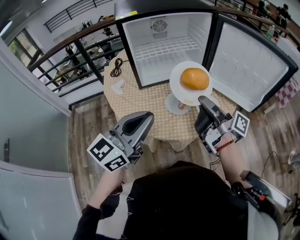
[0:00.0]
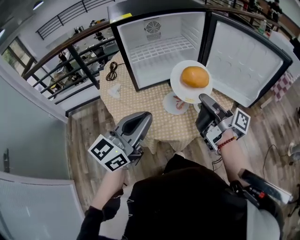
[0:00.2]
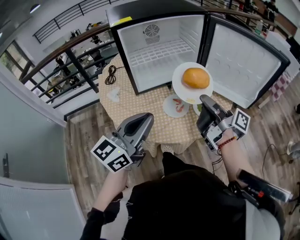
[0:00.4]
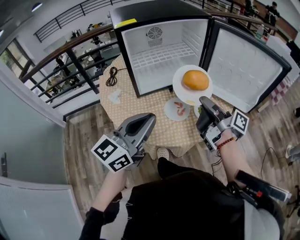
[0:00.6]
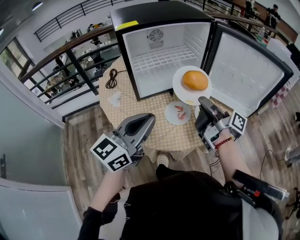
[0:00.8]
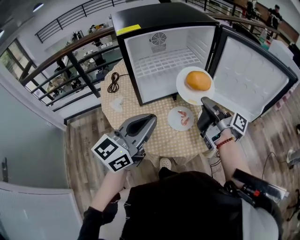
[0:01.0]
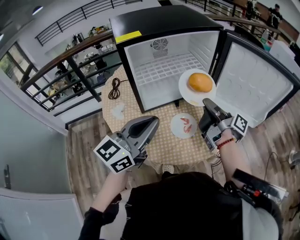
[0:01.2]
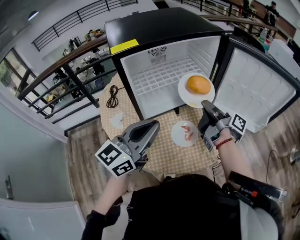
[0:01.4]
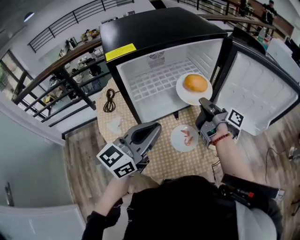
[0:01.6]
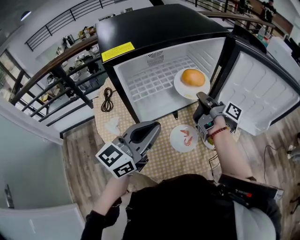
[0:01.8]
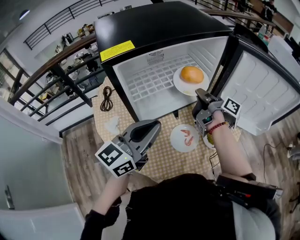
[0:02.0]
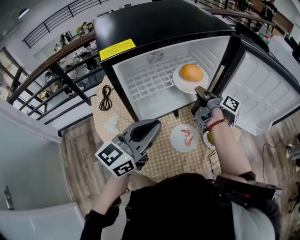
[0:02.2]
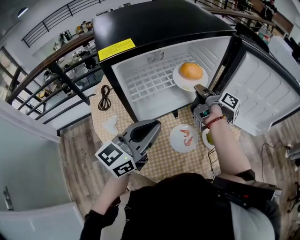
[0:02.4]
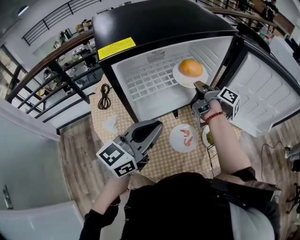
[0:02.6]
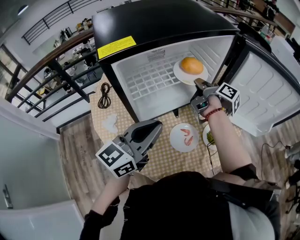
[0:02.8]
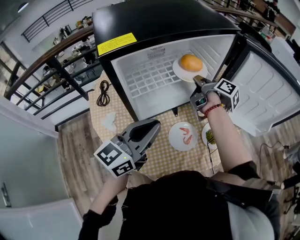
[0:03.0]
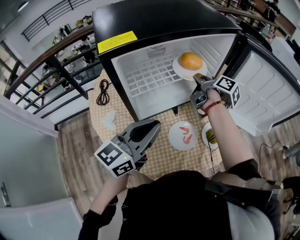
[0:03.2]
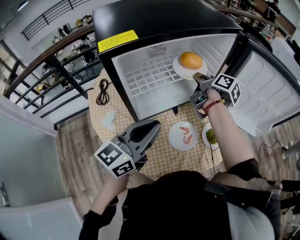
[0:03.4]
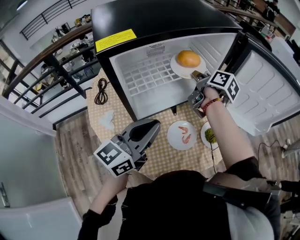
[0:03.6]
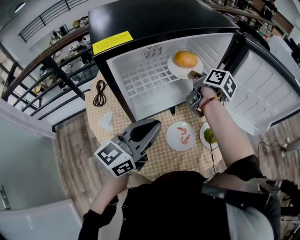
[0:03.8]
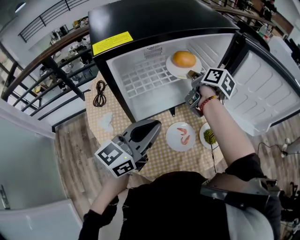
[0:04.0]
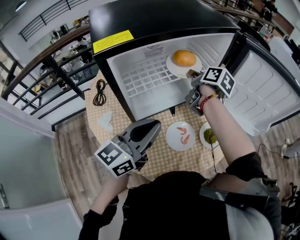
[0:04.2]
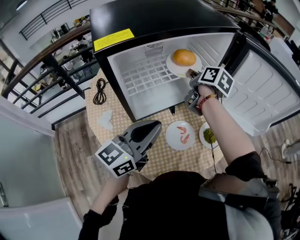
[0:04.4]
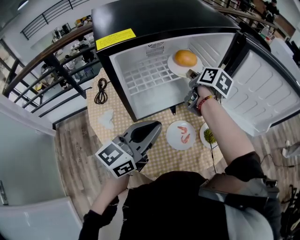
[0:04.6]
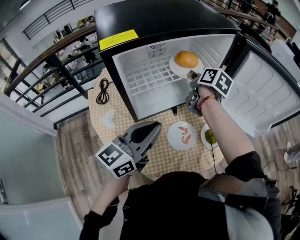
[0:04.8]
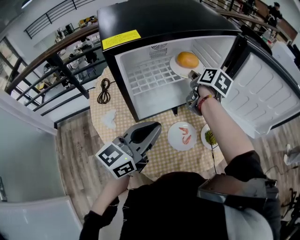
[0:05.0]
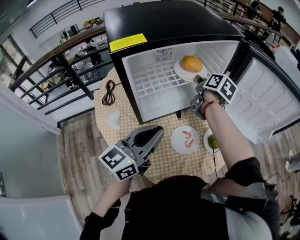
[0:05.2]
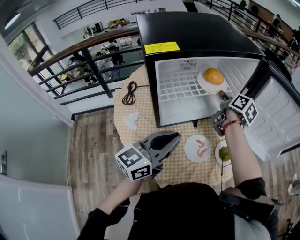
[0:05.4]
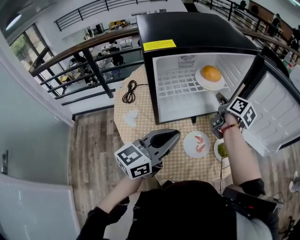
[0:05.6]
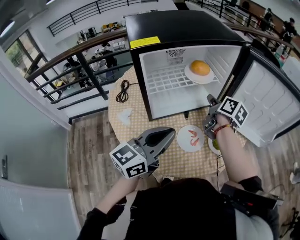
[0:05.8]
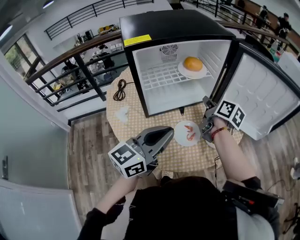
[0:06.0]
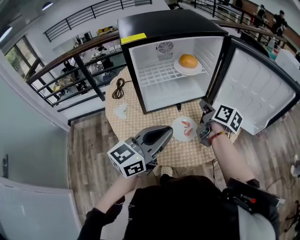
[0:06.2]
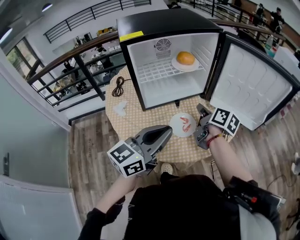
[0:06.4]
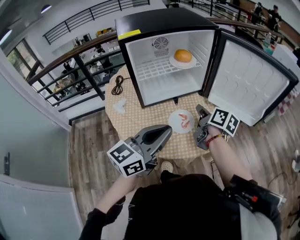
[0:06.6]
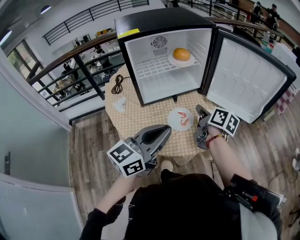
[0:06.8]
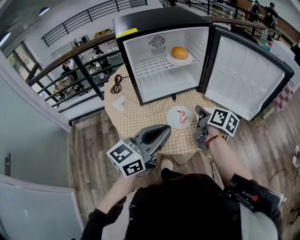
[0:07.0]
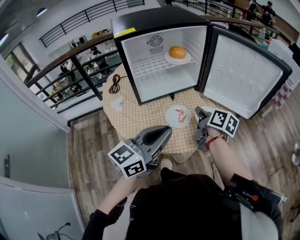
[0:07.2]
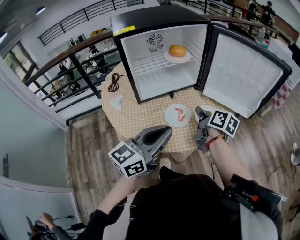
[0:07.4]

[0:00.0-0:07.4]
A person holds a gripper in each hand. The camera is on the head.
0:00.0 to 0:01.4: The left gripper shifts by about 15 cm.
0:01.4 to 0:03.0: The left gripper moves roughly 5 cm.
0:04.4 to 0:06.0: The left gripper shifts by roughly 10 cm.
0:06.0 to 0:07.4: The left gripper moves some 10 cm.

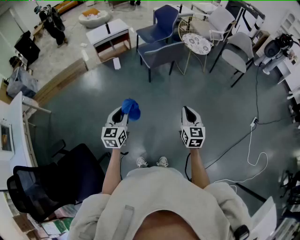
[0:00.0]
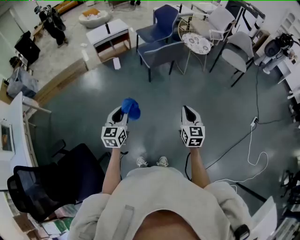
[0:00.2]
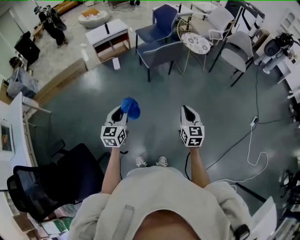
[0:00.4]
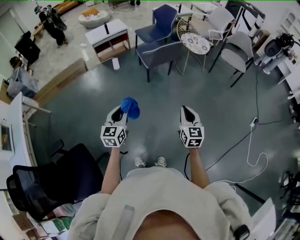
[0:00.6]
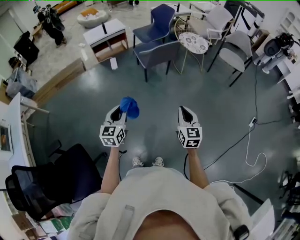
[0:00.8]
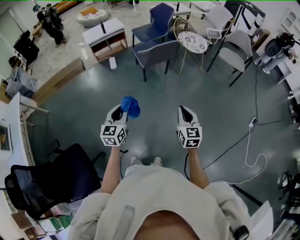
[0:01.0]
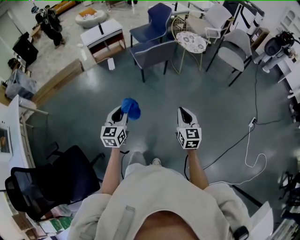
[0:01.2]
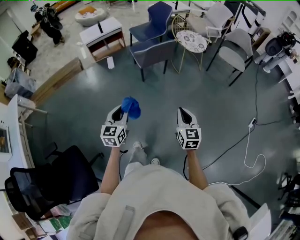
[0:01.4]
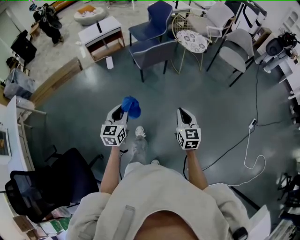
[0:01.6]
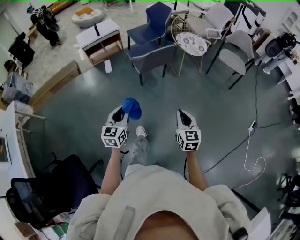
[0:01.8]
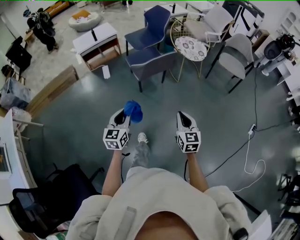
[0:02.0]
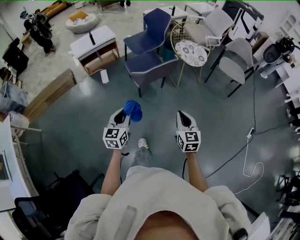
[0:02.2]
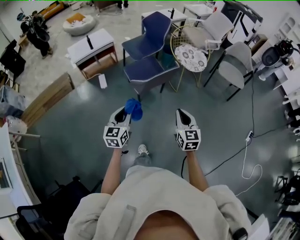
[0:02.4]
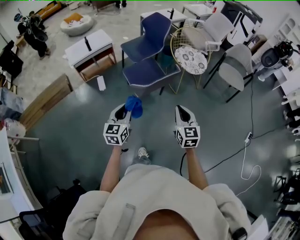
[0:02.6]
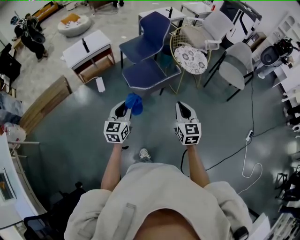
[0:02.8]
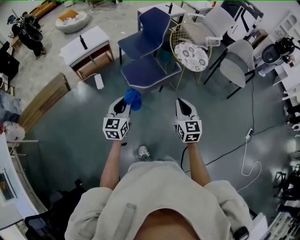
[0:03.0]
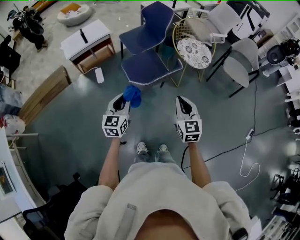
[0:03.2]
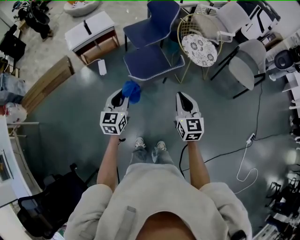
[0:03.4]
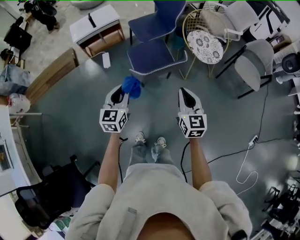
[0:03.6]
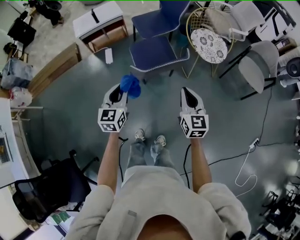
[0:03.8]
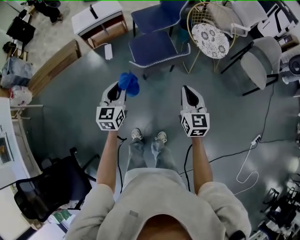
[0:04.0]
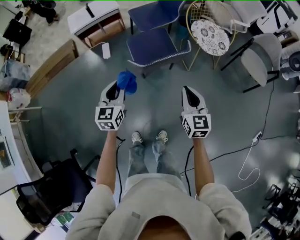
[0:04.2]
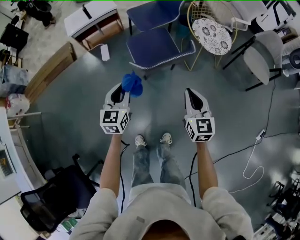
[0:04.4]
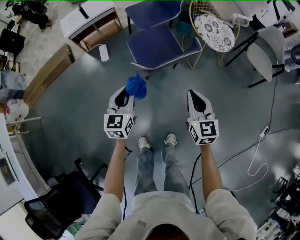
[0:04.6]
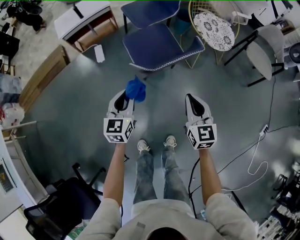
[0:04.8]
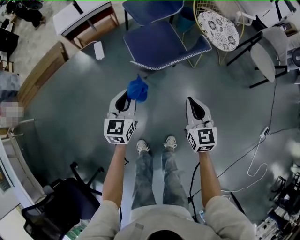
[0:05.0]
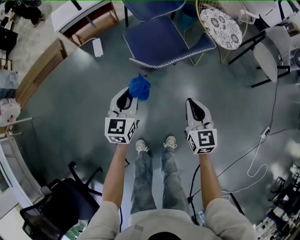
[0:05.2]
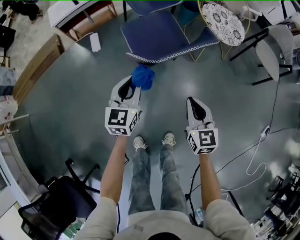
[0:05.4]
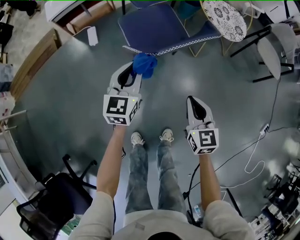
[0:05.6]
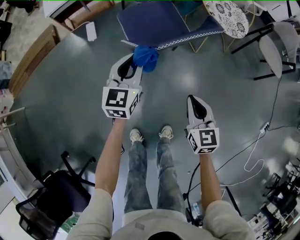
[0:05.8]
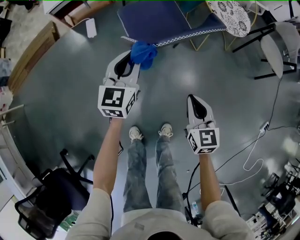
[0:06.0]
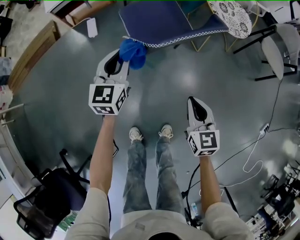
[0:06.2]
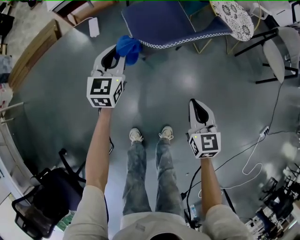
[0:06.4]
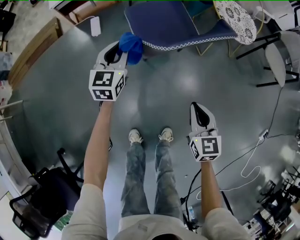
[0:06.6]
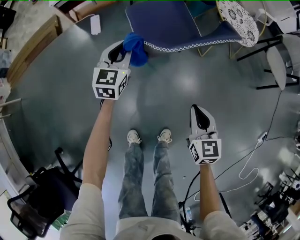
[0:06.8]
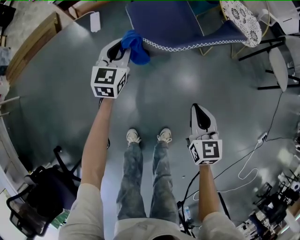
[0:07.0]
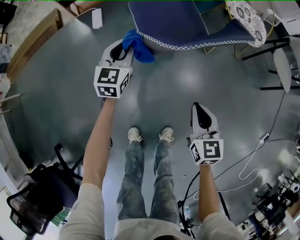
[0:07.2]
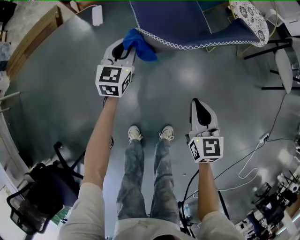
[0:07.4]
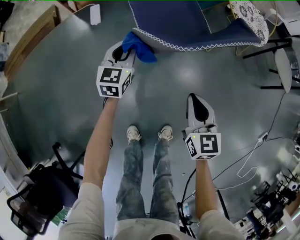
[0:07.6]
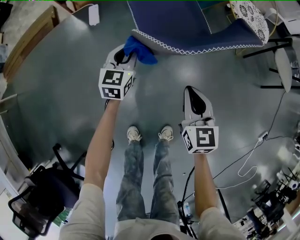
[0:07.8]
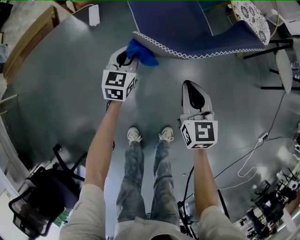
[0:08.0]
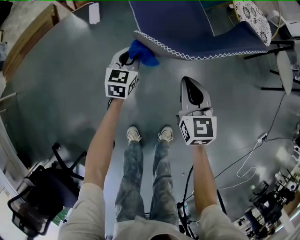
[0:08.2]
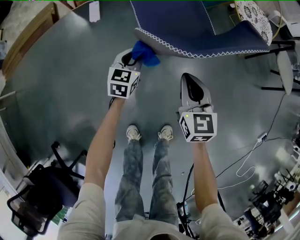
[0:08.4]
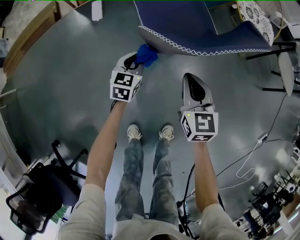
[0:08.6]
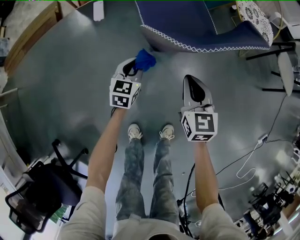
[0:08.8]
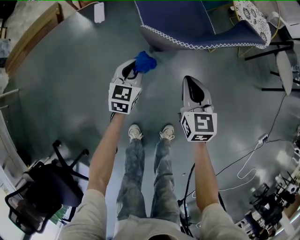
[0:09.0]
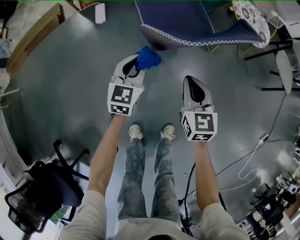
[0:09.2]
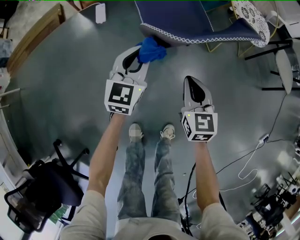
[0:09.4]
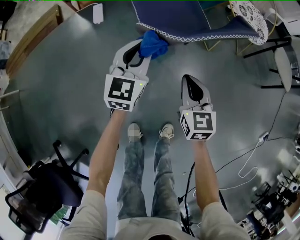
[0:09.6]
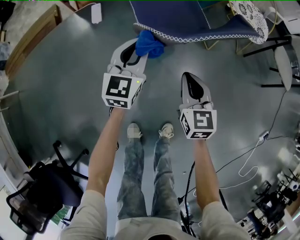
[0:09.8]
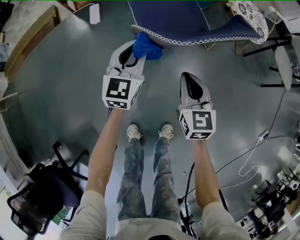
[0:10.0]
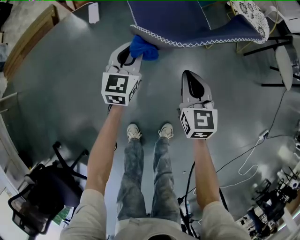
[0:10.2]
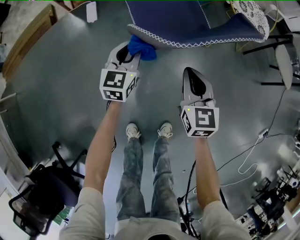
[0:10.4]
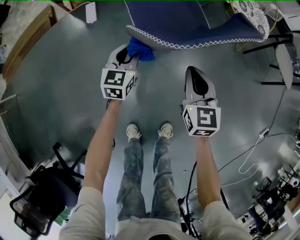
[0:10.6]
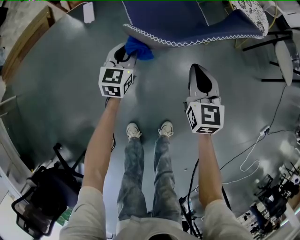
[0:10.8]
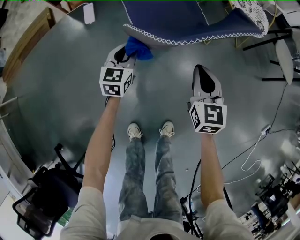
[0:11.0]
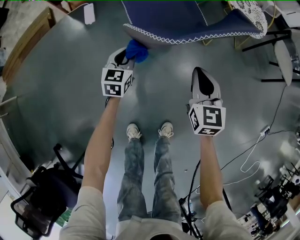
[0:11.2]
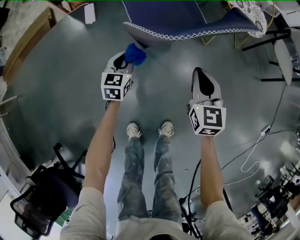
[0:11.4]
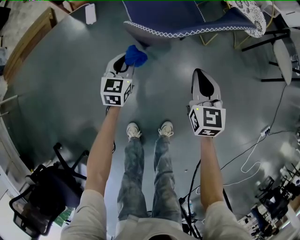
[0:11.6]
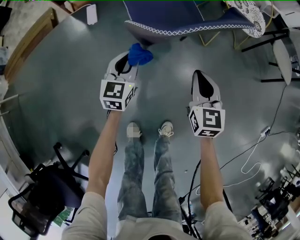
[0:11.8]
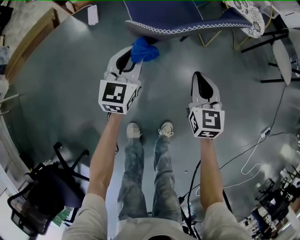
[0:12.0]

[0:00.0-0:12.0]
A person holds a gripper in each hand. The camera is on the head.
0:00.0 to 0:01.6: The right gripper travels forward and to the right by about 10 cm, while the left gripper moves to the right and forward, roughly 15 cm.
0:01.6 to 0:03.0: Both grippers travel together forward, roughly 40 cm.
0:03.0 to 0:04.4: Both grippers travel together downward, roughly 10 cm.
0:04.4 to 0:06.0: The right gripper goes approximately 20 cm downward. The left gripper travels downward and forward by about 15 cm.
0:06.0 to 0:07.6: The left gripper heads downward, forward and to the left, covering approximately 20 cm. Meanwhile the right gripper moves about 10 cm.
0:07.6 to 0:09.0: The left gripper heads backward, covering approximately 10 cm. Meanwhile the right gripper changes place by some 5 cm.
0:09.0 to 0:10.4: The left gripper shifts approximately 5 cm forward, and goes upward and returns, some 15 cm each way.
0:10.4 to 0:12.0: The right gripper changes place by about 5 cm; the left gripper heads upward and backward, covering approximately 10 cm.

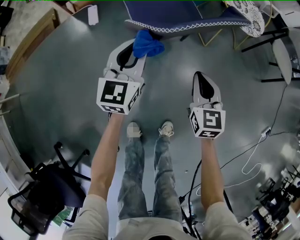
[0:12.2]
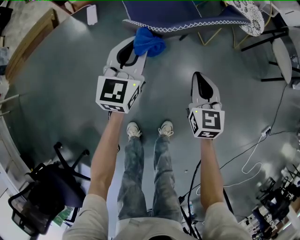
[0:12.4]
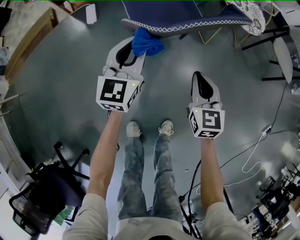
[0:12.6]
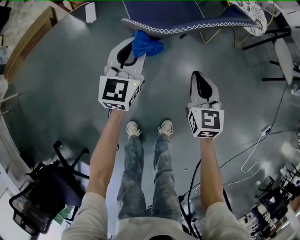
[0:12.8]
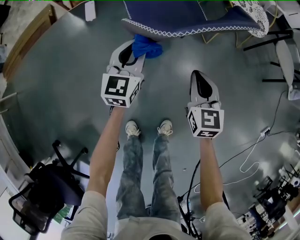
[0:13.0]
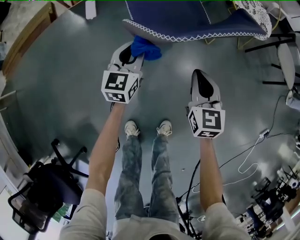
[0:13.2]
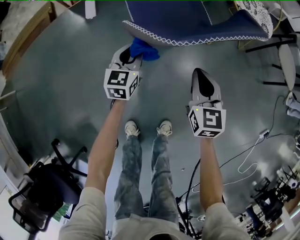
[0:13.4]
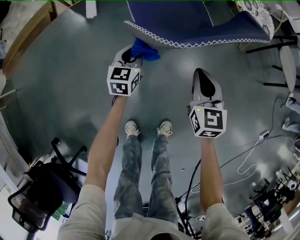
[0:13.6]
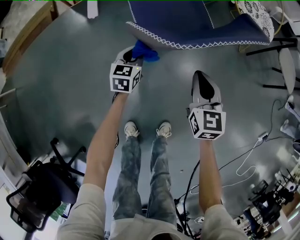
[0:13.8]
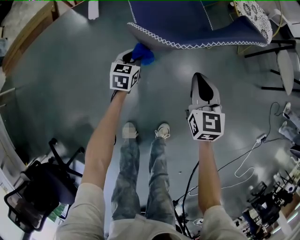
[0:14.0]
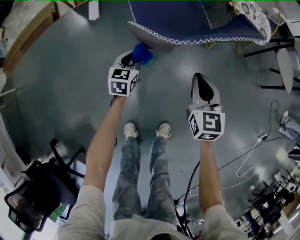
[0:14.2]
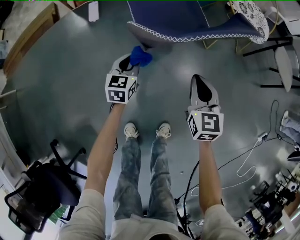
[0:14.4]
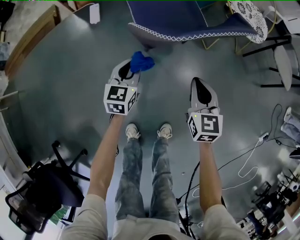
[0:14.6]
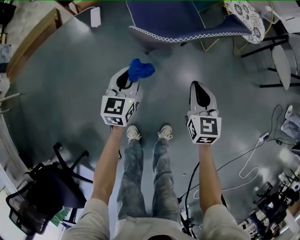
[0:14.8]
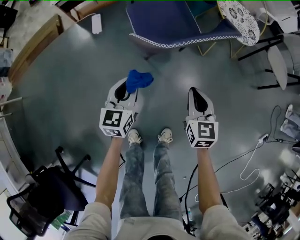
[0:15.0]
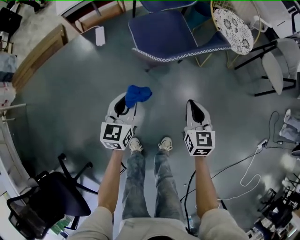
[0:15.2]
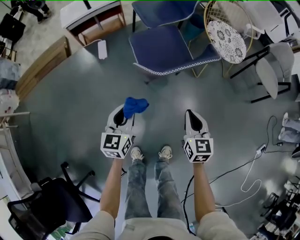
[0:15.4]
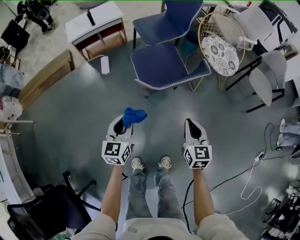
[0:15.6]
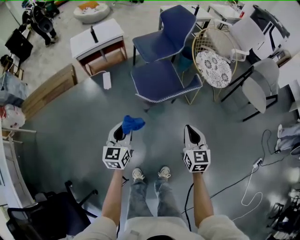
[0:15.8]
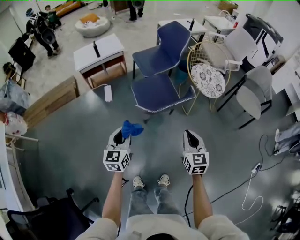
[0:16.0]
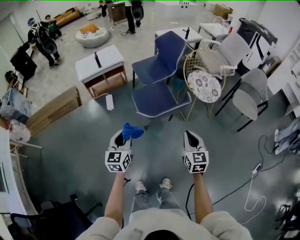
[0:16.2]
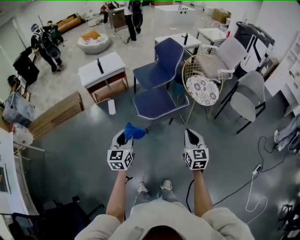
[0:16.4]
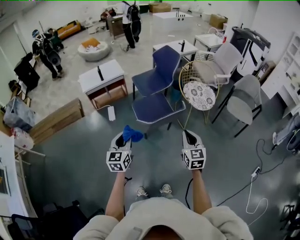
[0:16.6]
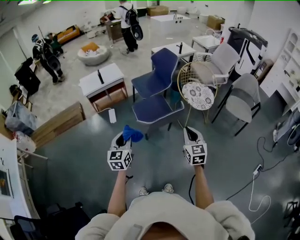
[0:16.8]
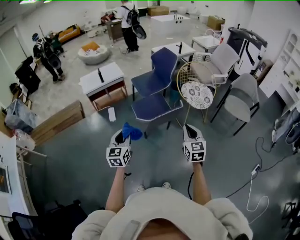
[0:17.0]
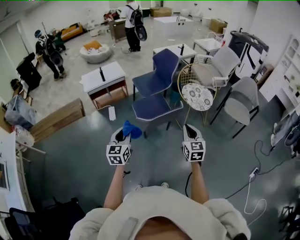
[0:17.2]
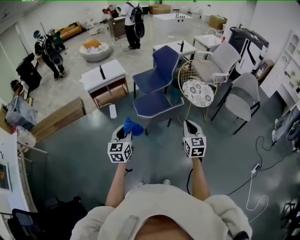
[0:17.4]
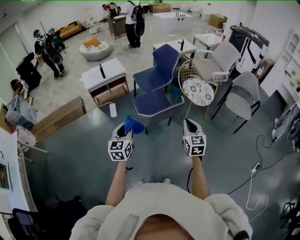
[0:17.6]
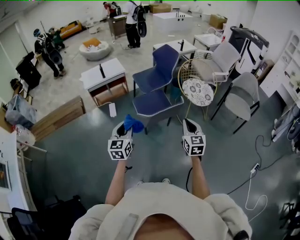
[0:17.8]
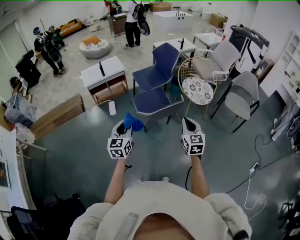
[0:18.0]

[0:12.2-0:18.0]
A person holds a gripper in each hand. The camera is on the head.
0:12.2 to 0:13.6: The right gripper goes some 5 cm forward; the left gripper travels downward by about 20 cm.
0:13.6 to 0:15.0: The right gripper is displaced backward by roughly 5 cm. Meanwhile the left gripper moves upward and backward, about 20 cm.
0:15.0 to 0:16.6: Both grippers travel together upward, some 35 cm.
0:16.6 to 0:18.0: The grippers stay close to where they were, moving slightly.
